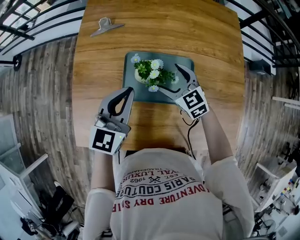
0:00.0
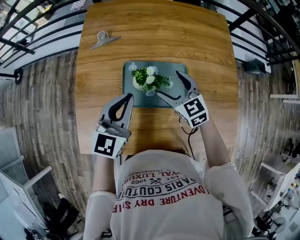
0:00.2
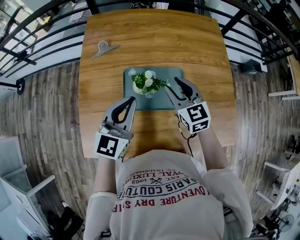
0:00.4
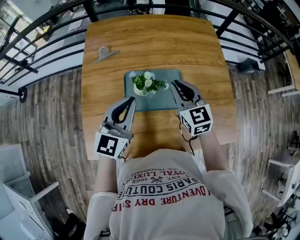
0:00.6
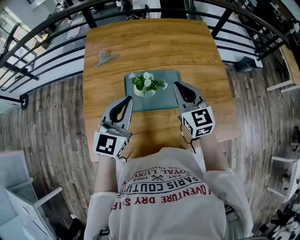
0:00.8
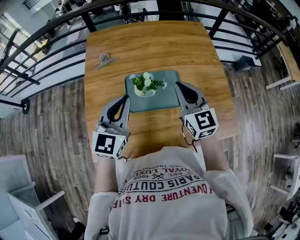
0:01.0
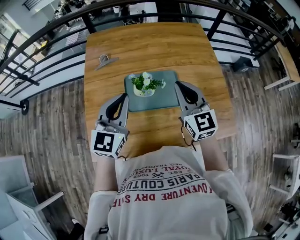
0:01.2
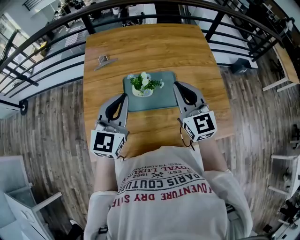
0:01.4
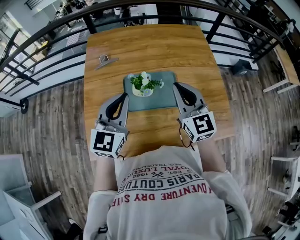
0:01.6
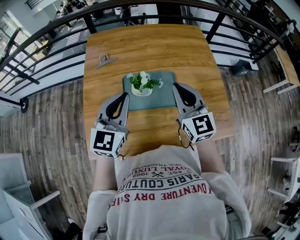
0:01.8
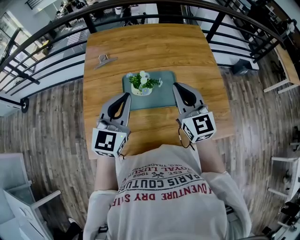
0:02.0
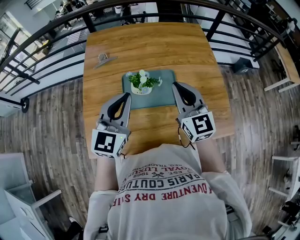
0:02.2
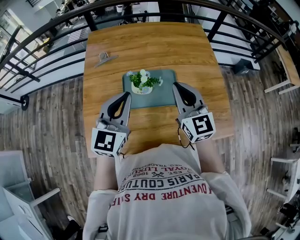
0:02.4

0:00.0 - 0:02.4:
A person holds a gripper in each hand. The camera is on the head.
0:00.0 - 0:01.2: The left gripper goes some 10 cm upward. The right gripper is displaced upward and backward by approximately 25 cm, changes its angle by approximately 40 degrees, and closes.
0:01.2 - 0:02.4: The grippers make only small movements.

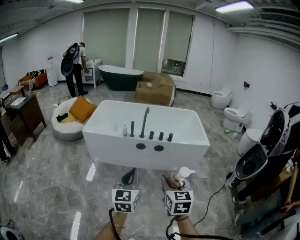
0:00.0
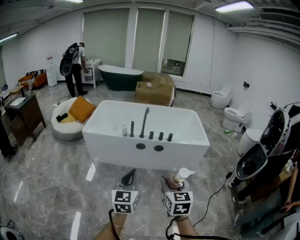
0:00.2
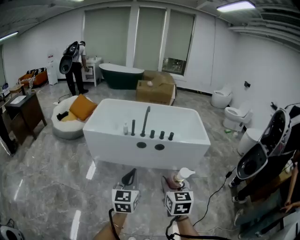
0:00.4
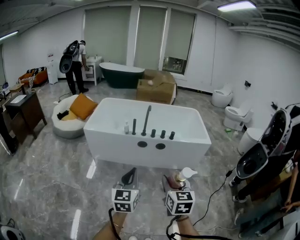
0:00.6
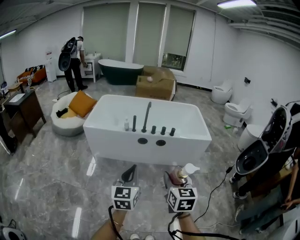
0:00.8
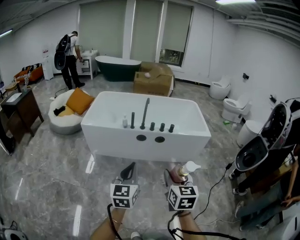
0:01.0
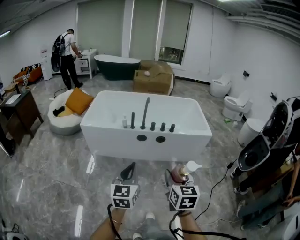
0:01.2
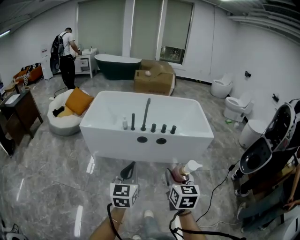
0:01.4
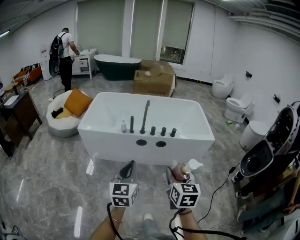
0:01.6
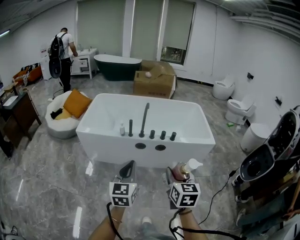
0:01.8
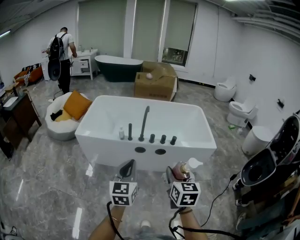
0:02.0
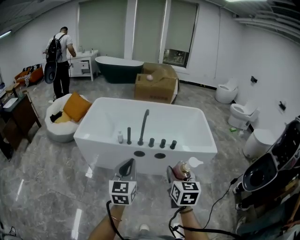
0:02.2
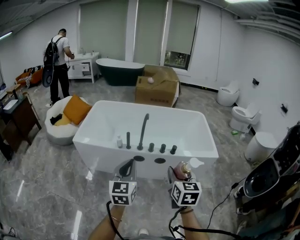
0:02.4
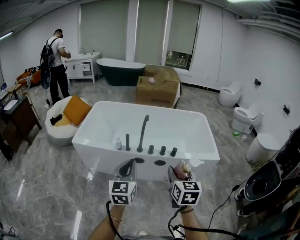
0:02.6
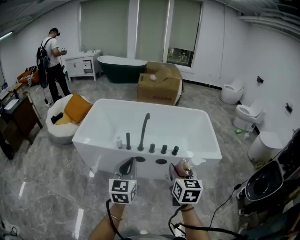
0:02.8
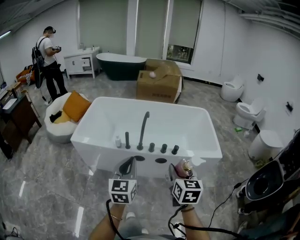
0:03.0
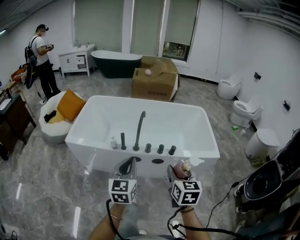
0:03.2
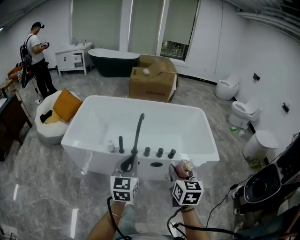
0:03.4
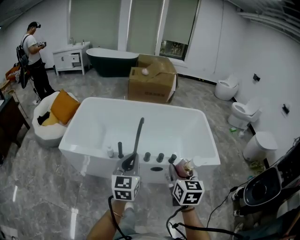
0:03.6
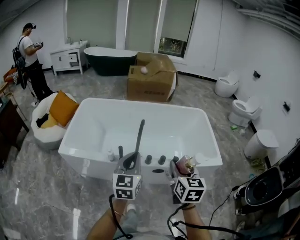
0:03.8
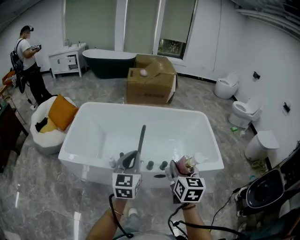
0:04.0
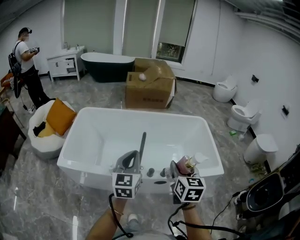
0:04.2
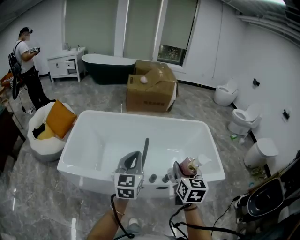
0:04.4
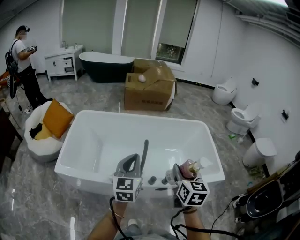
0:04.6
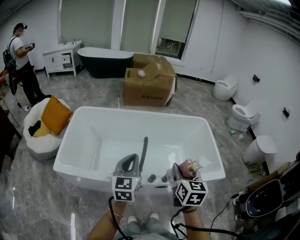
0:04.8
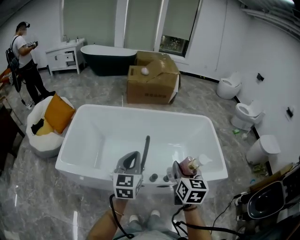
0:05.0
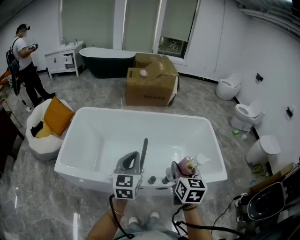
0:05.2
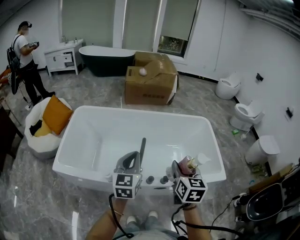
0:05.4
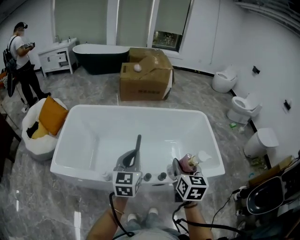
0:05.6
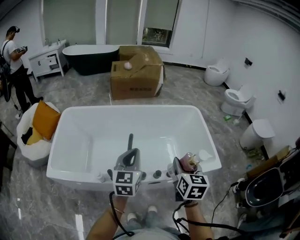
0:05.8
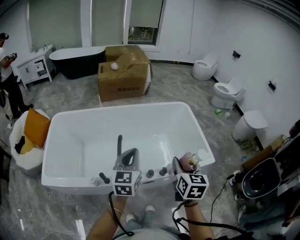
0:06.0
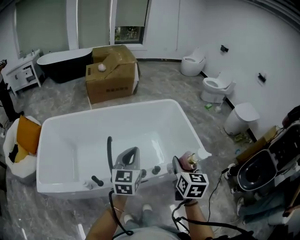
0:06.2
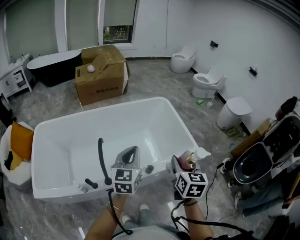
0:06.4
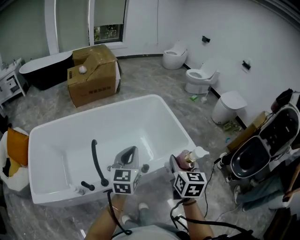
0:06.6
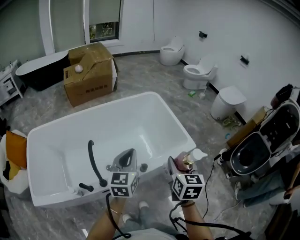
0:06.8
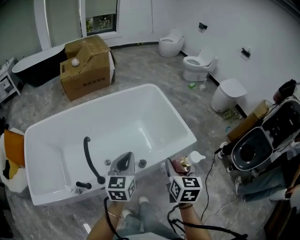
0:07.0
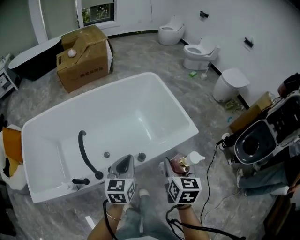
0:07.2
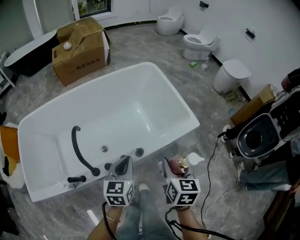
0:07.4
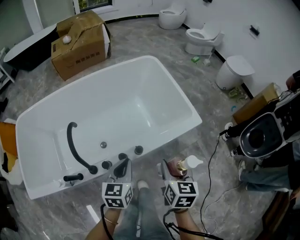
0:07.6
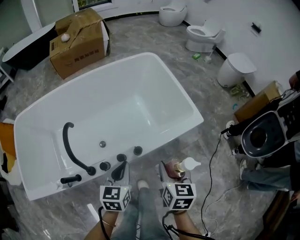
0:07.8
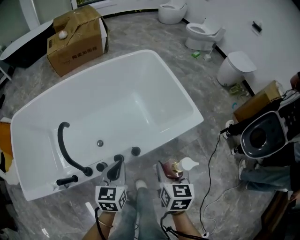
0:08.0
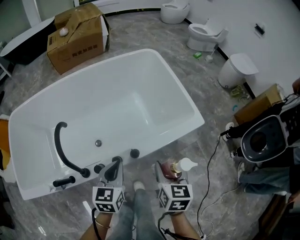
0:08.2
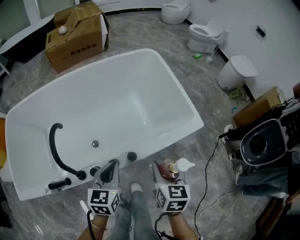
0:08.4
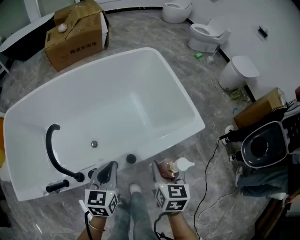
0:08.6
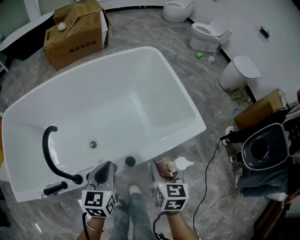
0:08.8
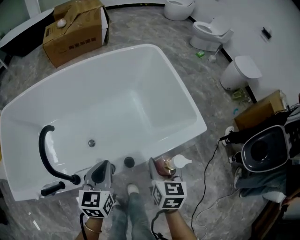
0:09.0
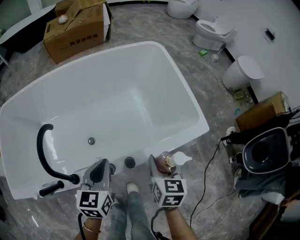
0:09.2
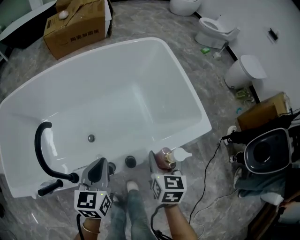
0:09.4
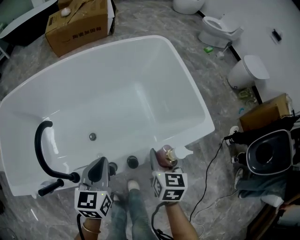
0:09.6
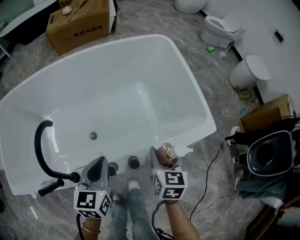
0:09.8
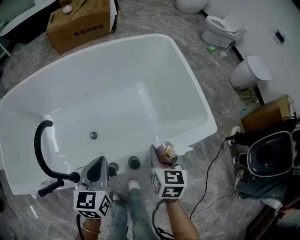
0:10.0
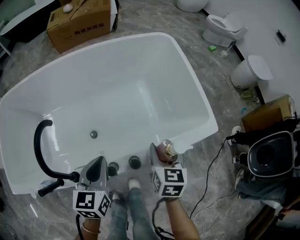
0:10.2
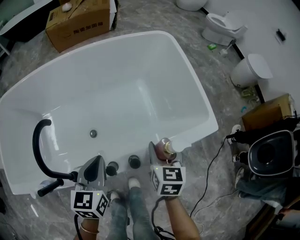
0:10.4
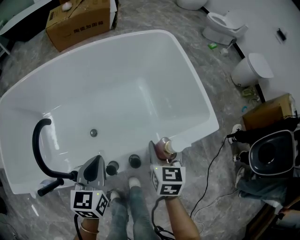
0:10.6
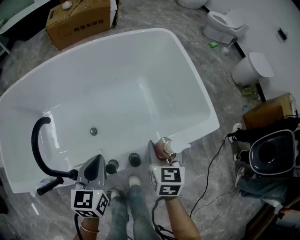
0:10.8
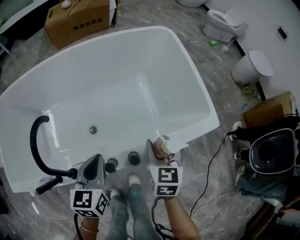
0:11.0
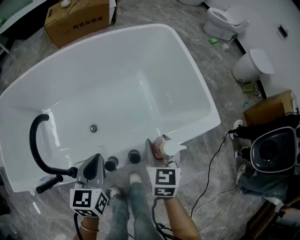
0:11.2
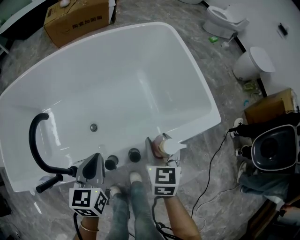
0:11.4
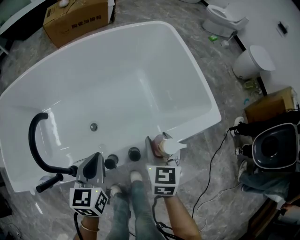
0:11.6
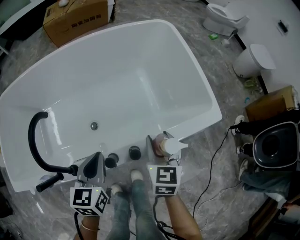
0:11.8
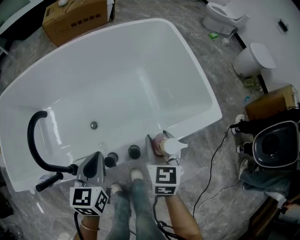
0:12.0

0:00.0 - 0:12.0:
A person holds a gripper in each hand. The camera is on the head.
0:00.0 - 0:01.6: Both grippers move forward, approximately 10 cm.
0:01.6 - 0:03.0: Both grippers move forward, some 25 cm.
0:03.0 - 0:04.4: The two grippers go approximately 30 cm forward.
0:04.4 - 0:06.0: The grippers both shift to the right and forward by approximately 15 cm.
0:06.0 - 0:07.6: Both grippers travel together downward and to the right, about 20 cm. The left gripper rotates some 30 degrees.
0:07.6 - 0:09.0: The right gripper moves downward and forward, about 15 cm; the left gripper is displaced forward and downward by approximately 10 cm.
0:09.0 - 0:10.4: The right gripper goes some 5 cm forward, while the left gripper moves approximately 5 cm.
0:10.4 - 0:12.0: The grippers move only a little.

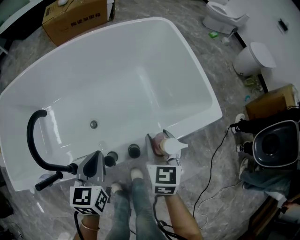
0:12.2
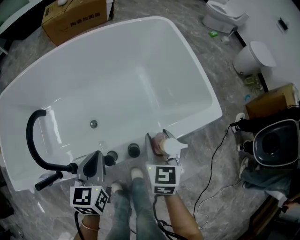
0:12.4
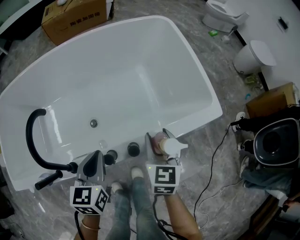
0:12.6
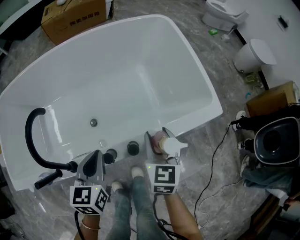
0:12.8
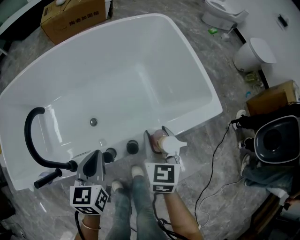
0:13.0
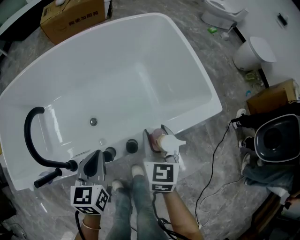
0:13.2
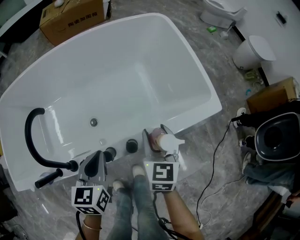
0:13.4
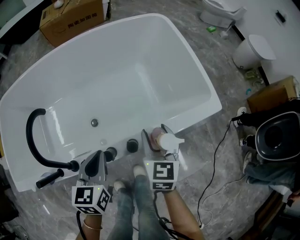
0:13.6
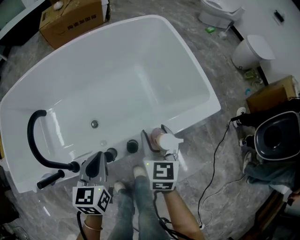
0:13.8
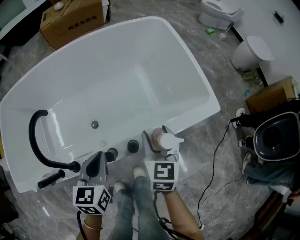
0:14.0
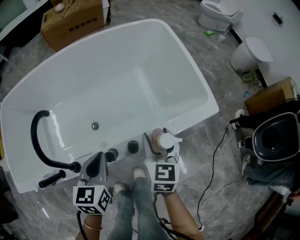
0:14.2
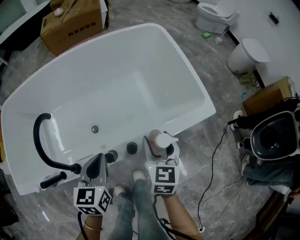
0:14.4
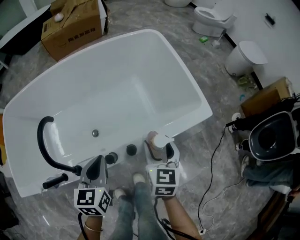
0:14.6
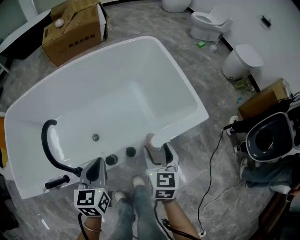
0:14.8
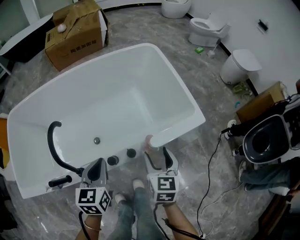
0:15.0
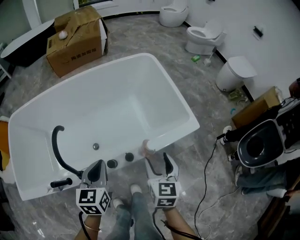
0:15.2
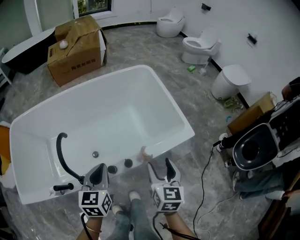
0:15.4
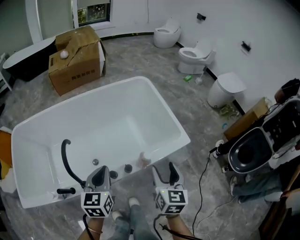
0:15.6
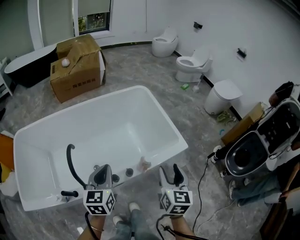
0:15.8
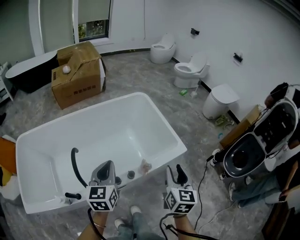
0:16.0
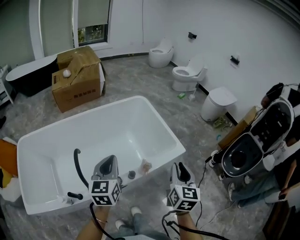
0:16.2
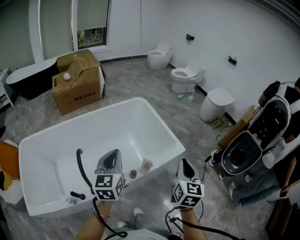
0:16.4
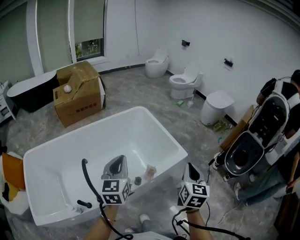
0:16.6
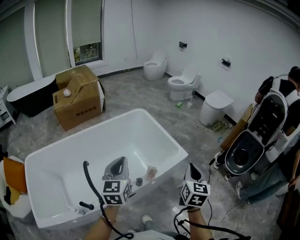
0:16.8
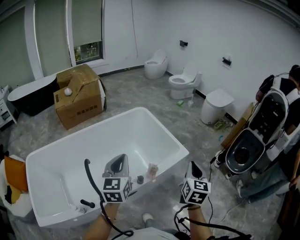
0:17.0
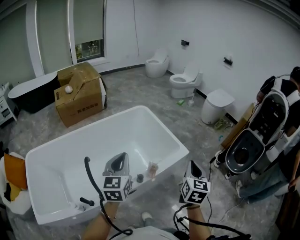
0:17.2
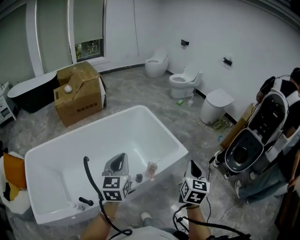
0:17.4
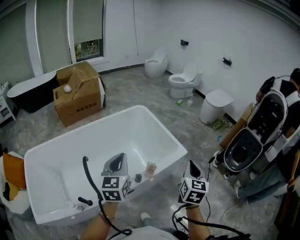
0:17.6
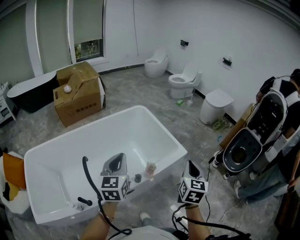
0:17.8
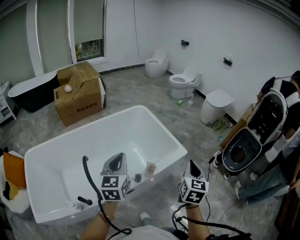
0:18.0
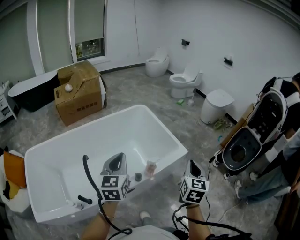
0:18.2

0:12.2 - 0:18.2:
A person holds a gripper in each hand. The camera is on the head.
0:12.2 - 0:13.8: The grippers stay close to where they were, moving slightly.
0:13.8 - 0:15.2: The right gripper is displaced upward and backward by about 15 cm; the left gripper heads upward, covering some 10 cm.
0:15.2 - 0:16.6: The right gripper moves upward and to the right, some 25 cm, turns by roughly 20 degrees, and closes, while the left gripper travels upward by about 20 cm, and swivels roughly 20 degrees.
0:16.6 - 0:18.2: The grippers stay close to where they were, moving slightly.

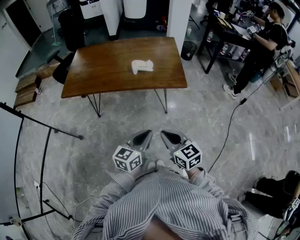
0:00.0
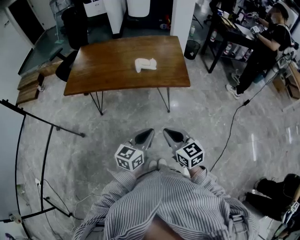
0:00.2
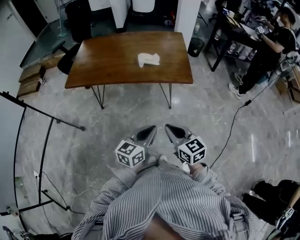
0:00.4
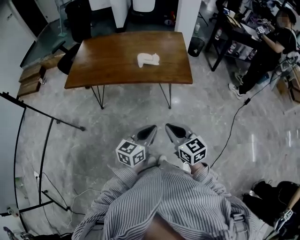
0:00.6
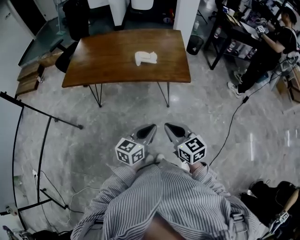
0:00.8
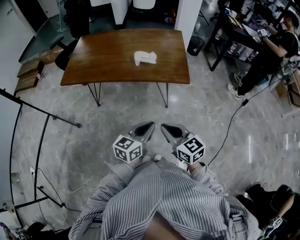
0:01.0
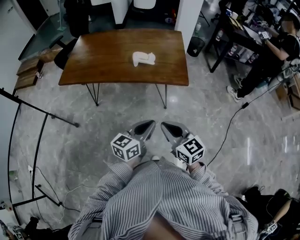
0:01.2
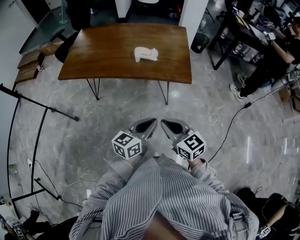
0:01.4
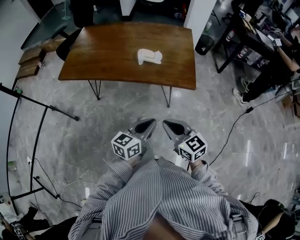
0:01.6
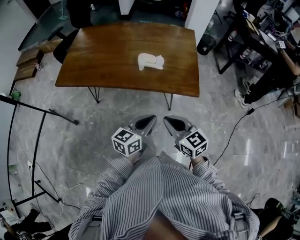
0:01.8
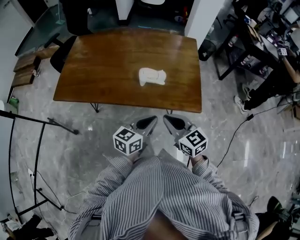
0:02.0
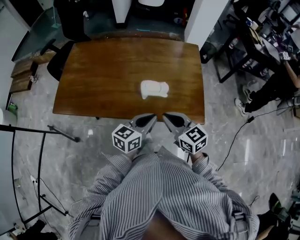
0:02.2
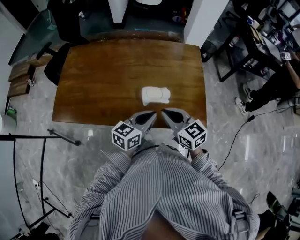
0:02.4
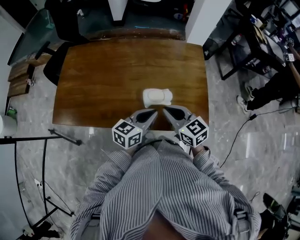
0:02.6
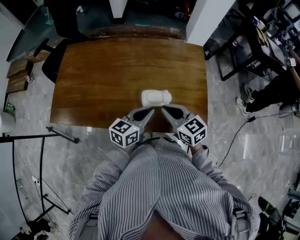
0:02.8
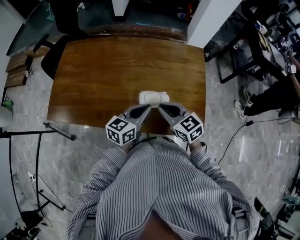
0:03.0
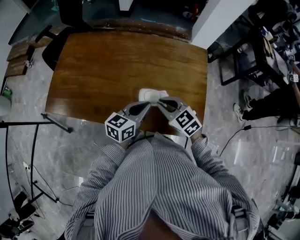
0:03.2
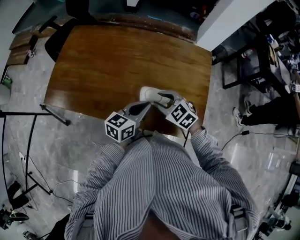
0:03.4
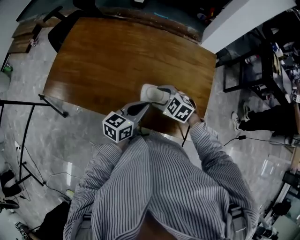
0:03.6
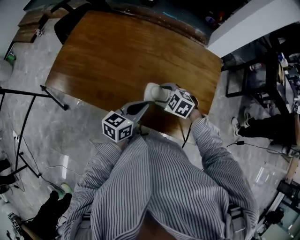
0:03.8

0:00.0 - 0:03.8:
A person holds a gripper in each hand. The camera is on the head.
0:00.0 - 0:01.2: The right gripper ends up some 5 cm from where it was; the left gripper is displaced to the right by about 5 cm.
0:01.2 - 0:02.6: Both grippers move forward, roughly 40 cm.
0:02.6 - 0:03.8: The right gripper goes some 10 cm downward, tilts its fingers approximately 40 degrees downward, and opens its fingers.
